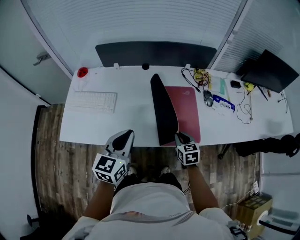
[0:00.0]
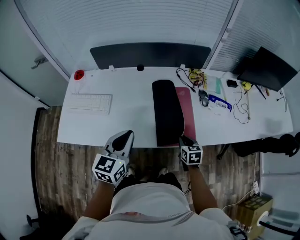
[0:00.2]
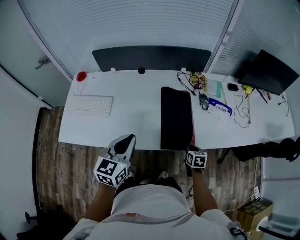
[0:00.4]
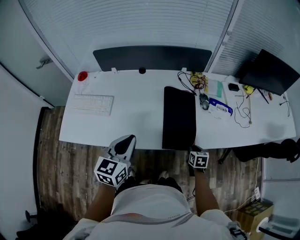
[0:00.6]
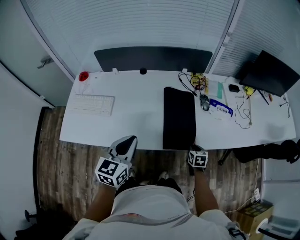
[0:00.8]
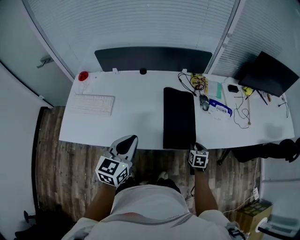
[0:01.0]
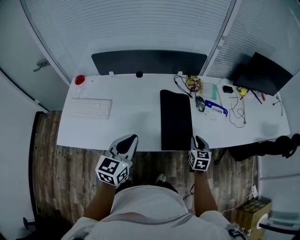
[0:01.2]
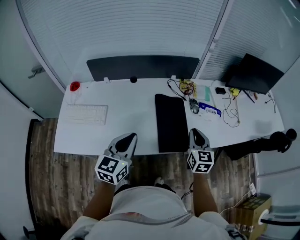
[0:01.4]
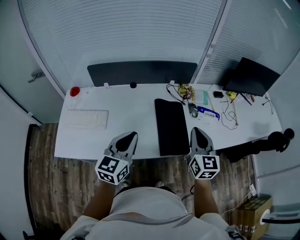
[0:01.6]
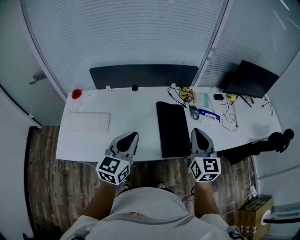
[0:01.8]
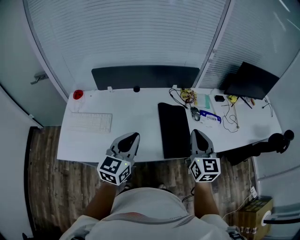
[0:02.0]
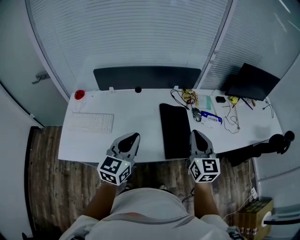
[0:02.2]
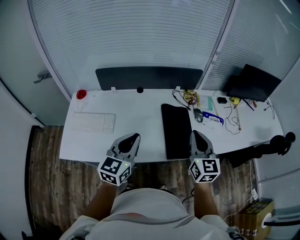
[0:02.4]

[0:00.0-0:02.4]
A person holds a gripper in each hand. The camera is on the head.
0:00.0 to 0:01.2: The right gripper moves to the right, about 15 cm; the left gripper shifts some 5 cm to the right.
0:01.2 to 0:02.4: The left gripper is displaced upward by roughly 5 cm; the right gripper goes approximately 25 cm upward and to the left, and swivels about 30 degrees.

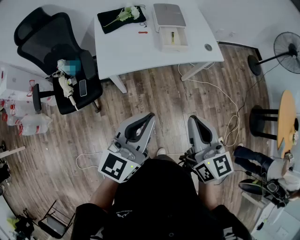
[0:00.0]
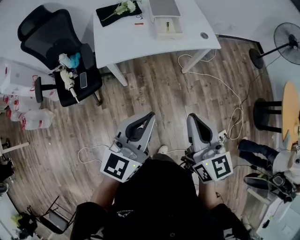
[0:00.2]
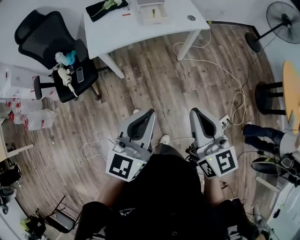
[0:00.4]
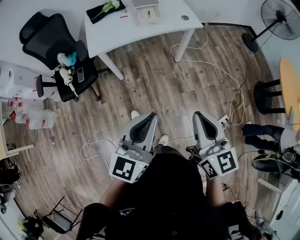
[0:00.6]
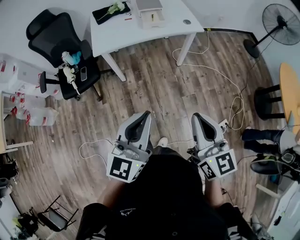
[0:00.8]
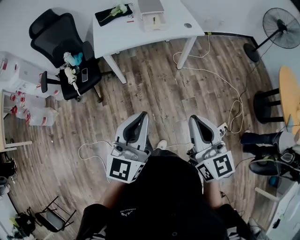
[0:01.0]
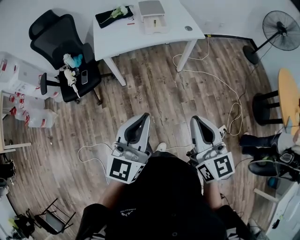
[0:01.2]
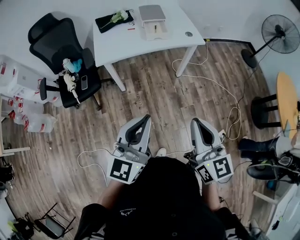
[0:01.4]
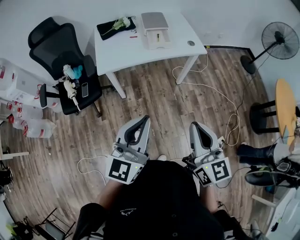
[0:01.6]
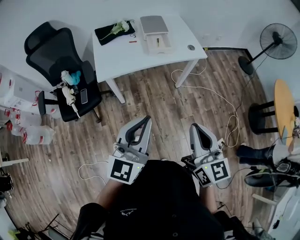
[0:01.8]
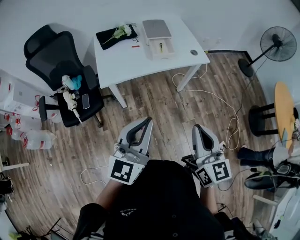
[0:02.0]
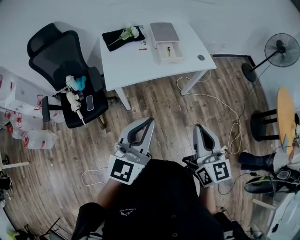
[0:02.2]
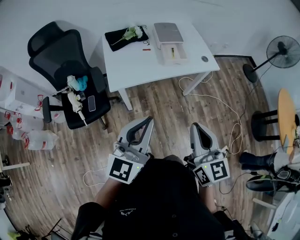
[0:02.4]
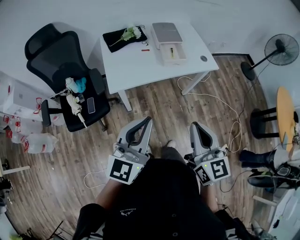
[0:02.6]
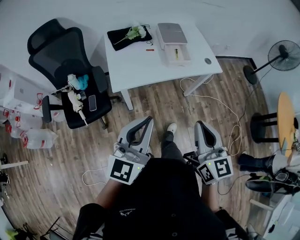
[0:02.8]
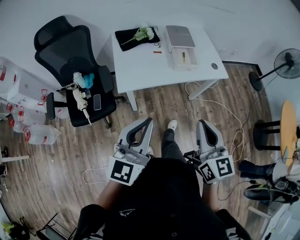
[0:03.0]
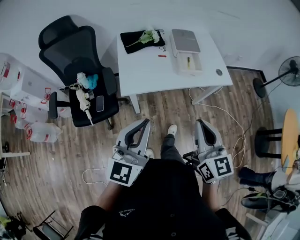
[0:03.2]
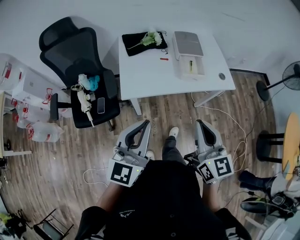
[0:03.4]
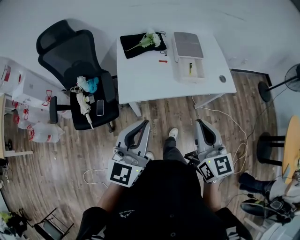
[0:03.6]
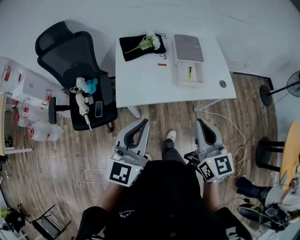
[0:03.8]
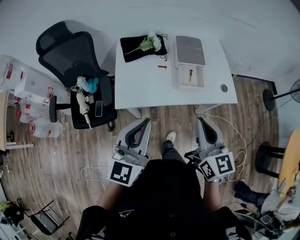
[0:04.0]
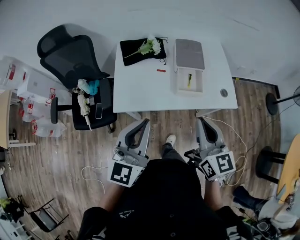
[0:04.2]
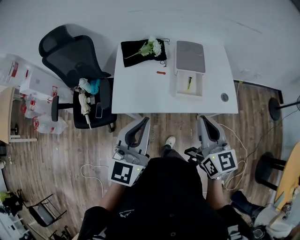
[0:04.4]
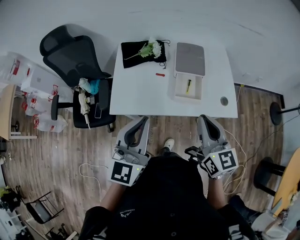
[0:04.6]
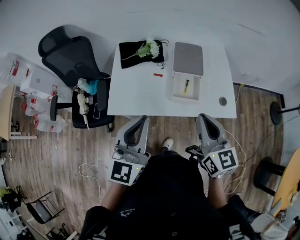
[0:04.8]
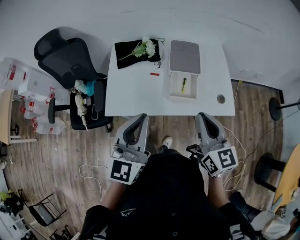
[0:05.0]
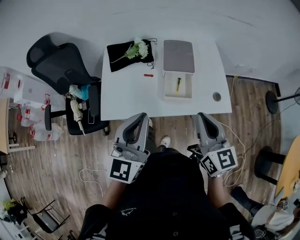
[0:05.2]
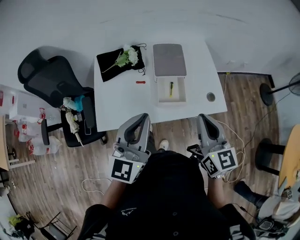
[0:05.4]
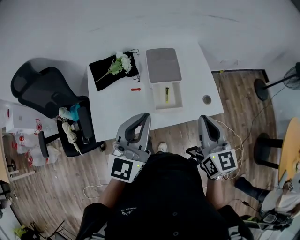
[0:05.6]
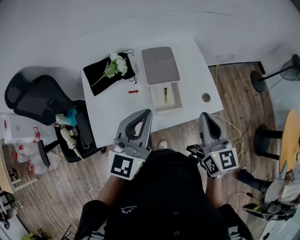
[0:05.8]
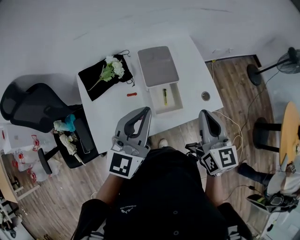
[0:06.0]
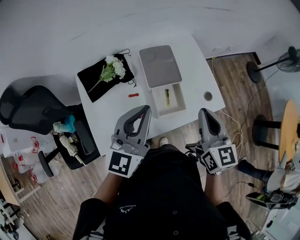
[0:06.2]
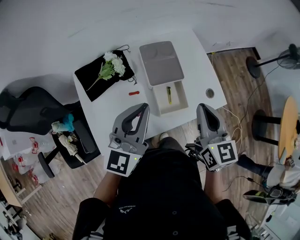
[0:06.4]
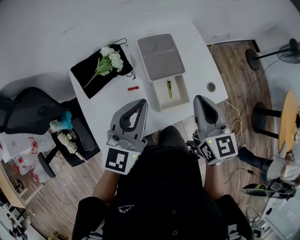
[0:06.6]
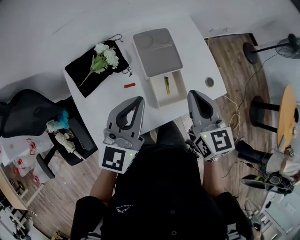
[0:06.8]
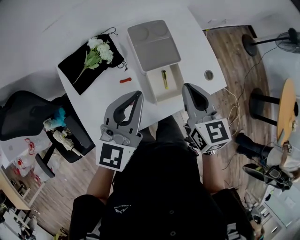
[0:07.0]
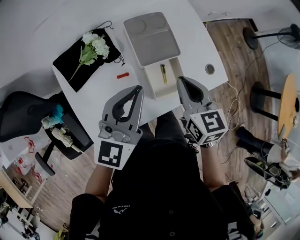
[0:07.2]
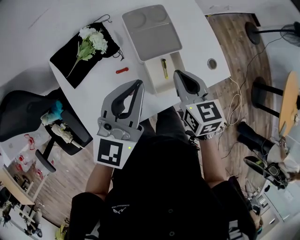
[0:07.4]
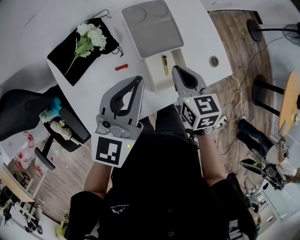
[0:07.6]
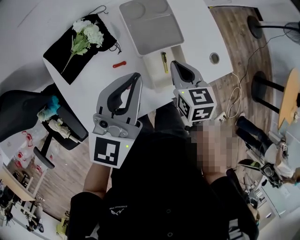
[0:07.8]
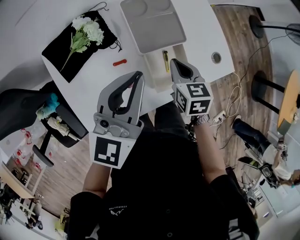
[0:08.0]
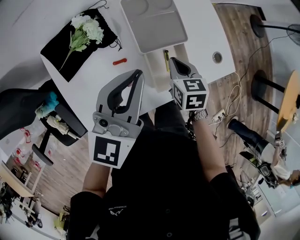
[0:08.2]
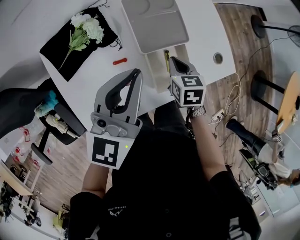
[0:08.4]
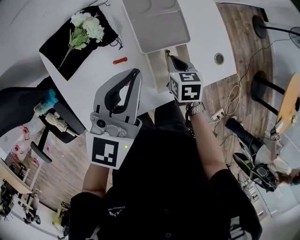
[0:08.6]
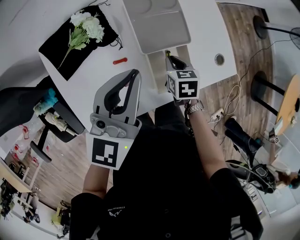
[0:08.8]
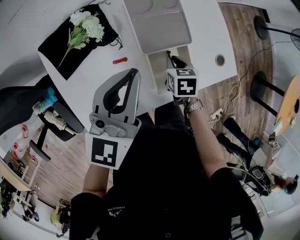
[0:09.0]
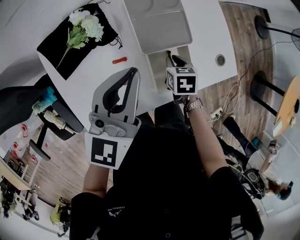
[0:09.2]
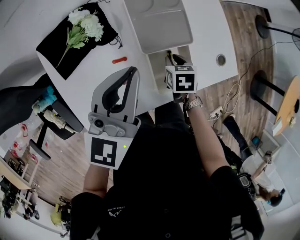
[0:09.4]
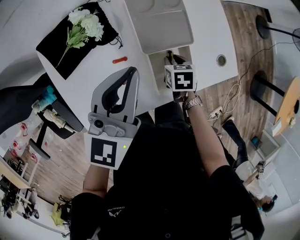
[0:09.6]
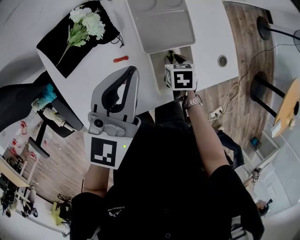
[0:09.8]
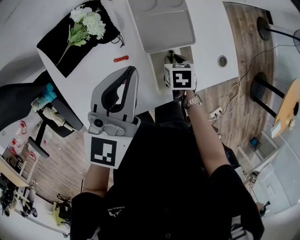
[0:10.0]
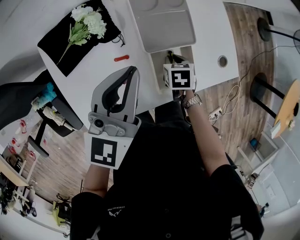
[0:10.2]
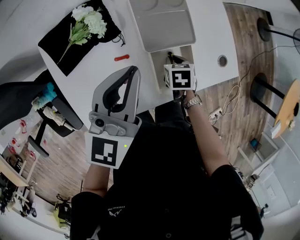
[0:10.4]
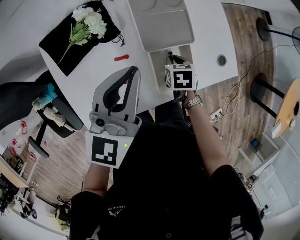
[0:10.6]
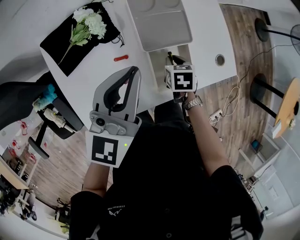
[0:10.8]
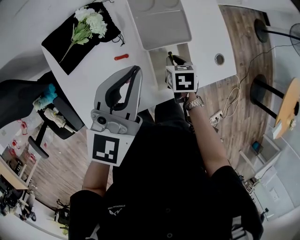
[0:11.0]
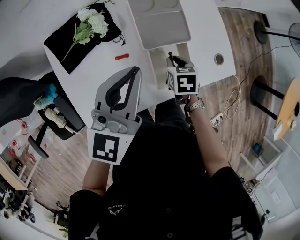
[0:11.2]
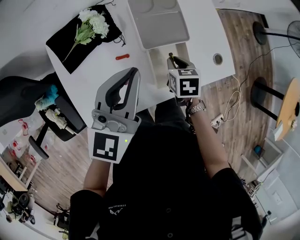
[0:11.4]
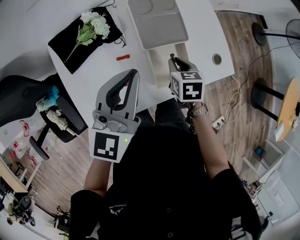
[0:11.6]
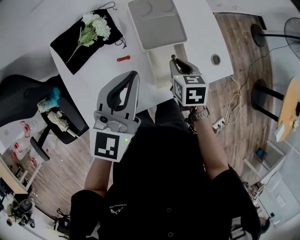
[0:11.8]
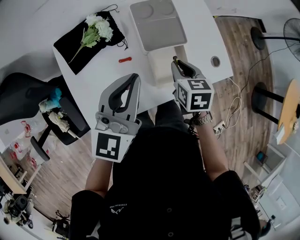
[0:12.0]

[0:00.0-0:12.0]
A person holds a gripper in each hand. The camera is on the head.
0:00.0 to 0:01.6: Both grippers move backward and to the right, some 20 cm.
0:01.6 to 0:03.0: The right gripper is displaced forward and to the left by about 25 cm; the left gripper heads to the left and forward, covering approximately 25 cm.
0:03.0 to 0:04.4: The two grippers go approximately 25 cm forward and to the right.
0:04.4 to 0:06.0: The left gripper moves some 20 cm, and changes its angle by approximately 20 degrees; the right gripper moves roughly 15 cm, and changes its angle by approximately 20 degrees.
0:06.0 to 0:07.6: The right gripper goes roughly 25 cm downward, forward and to the left, and swivels approximately 20 degrees; the left gripper heads forward and downward, covering roughly 15 cm.
0:07.6 to 0:09.0: The right gripper moves downward, roughly 15 cm, and swivels roughly 30 degrees.
0:09.0 to 0:10.4: There are only small adjustments of the grippers.
0:10.4 to 0:12.0: The left gripper moves backward, approximately 10 cm; the right gripper goes some 15 cm upward, and swivels roughly 20 degrees.

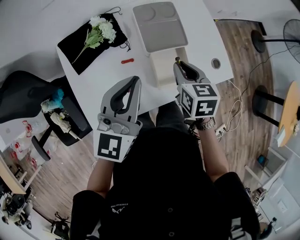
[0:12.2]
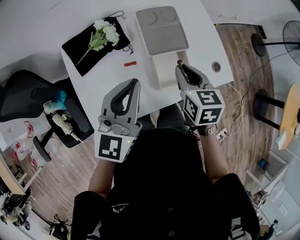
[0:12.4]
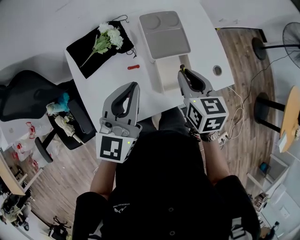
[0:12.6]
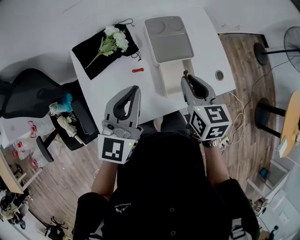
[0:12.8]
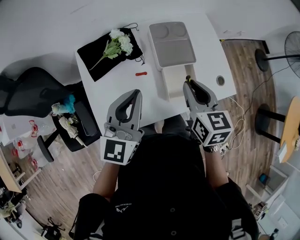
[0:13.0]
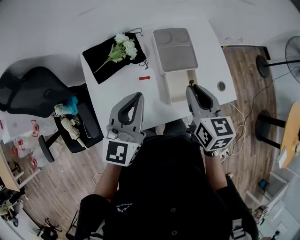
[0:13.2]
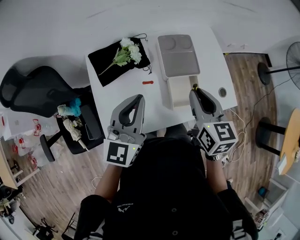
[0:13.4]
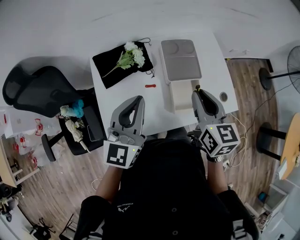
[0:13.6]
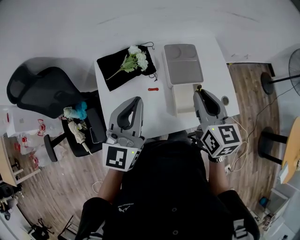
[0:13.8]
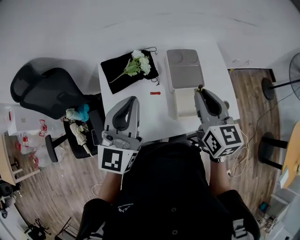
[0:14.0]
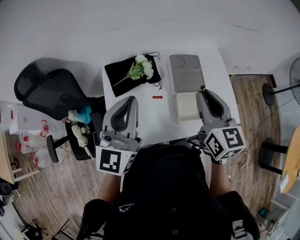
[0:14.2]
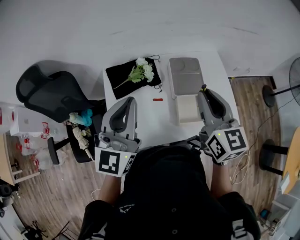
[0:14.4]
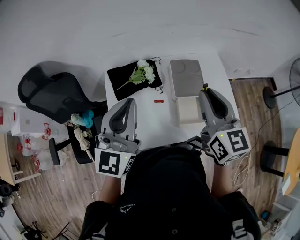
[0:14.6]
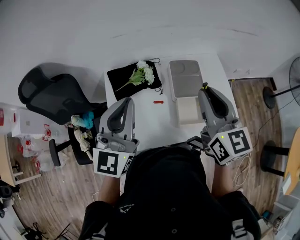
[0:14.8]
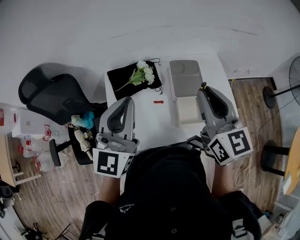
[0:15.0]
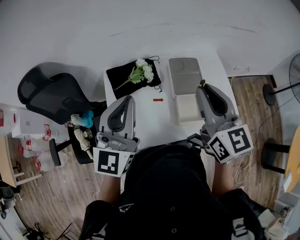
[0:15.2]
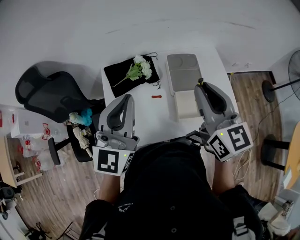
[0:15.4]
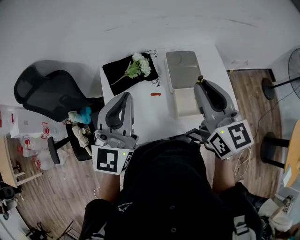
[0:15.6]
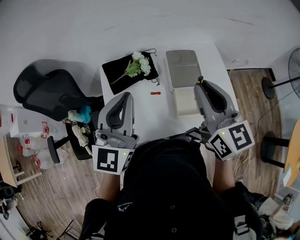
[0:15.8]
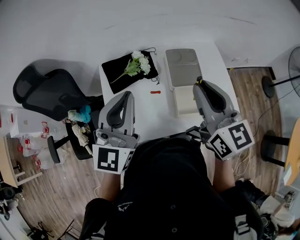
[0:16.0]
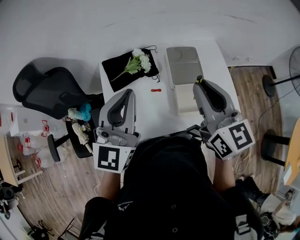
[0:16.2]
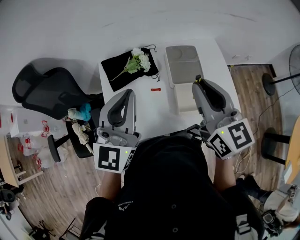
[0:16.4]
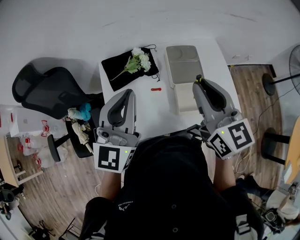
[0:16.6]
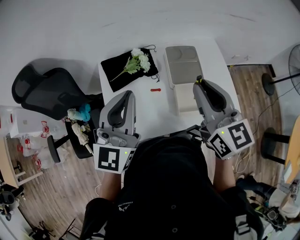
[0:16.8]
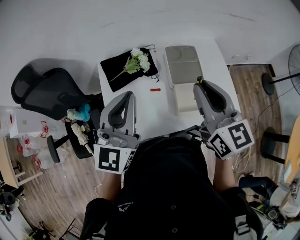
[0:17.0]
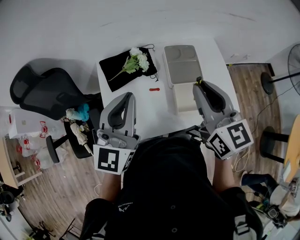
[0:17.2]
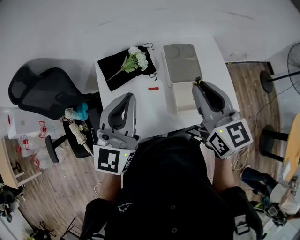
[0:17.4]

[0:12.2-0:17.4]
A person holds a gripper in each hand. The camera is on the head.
0:12.2 to 0:14.0: The right gripper travels upward by about 20 cm, and changes its angle by about 30 degrees. The left gripper shifts roughly 15 cm upward and to the left, and rotates some 20 degrees.
0:14.0 to 0:15.6: The right gripper goes approximately 10 cm upward.
0:15.6 to 0:17.4: The grippers stay close to where they were, moving slightly.

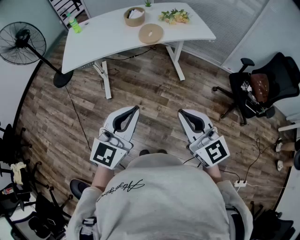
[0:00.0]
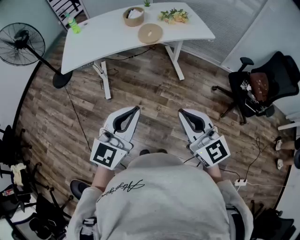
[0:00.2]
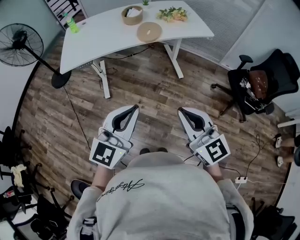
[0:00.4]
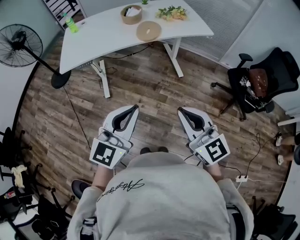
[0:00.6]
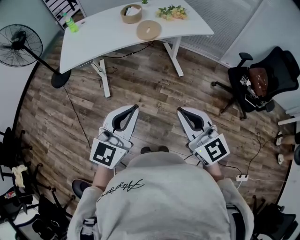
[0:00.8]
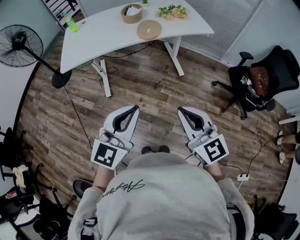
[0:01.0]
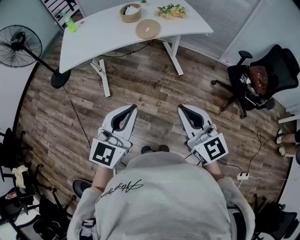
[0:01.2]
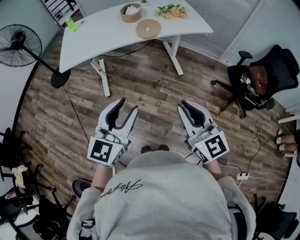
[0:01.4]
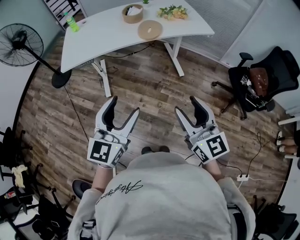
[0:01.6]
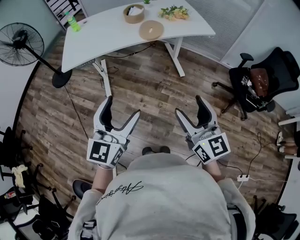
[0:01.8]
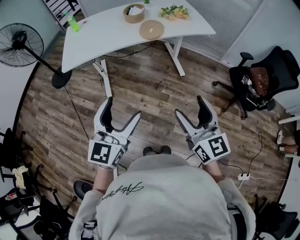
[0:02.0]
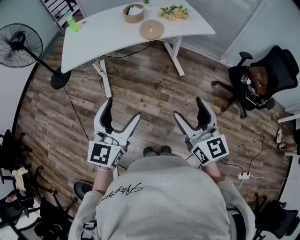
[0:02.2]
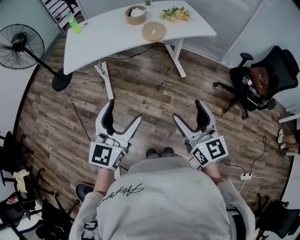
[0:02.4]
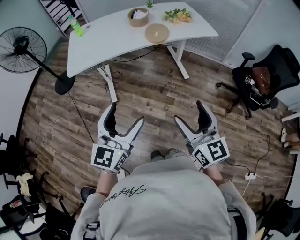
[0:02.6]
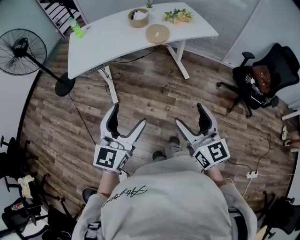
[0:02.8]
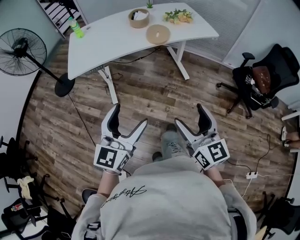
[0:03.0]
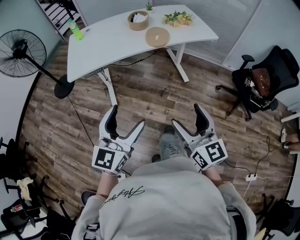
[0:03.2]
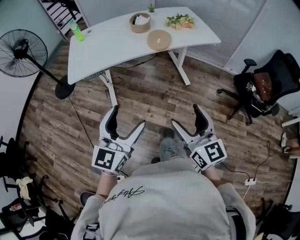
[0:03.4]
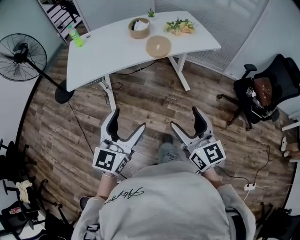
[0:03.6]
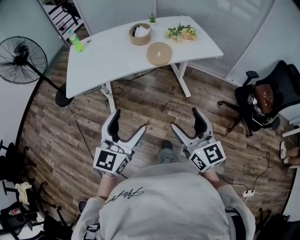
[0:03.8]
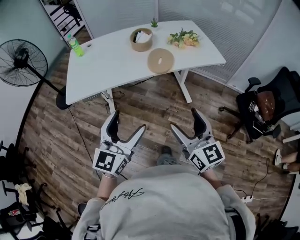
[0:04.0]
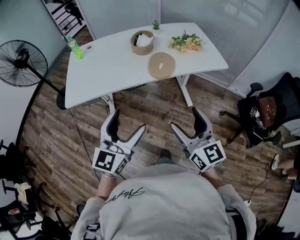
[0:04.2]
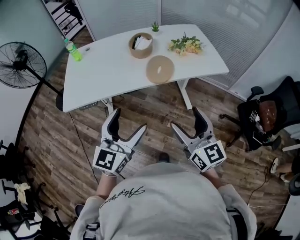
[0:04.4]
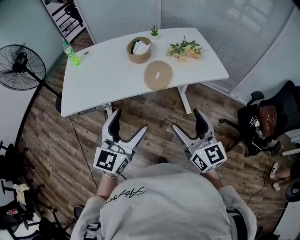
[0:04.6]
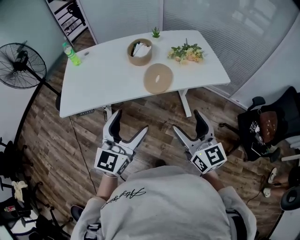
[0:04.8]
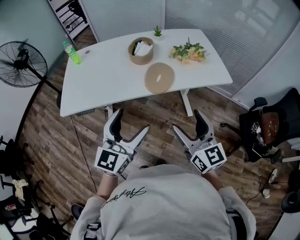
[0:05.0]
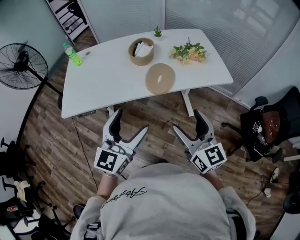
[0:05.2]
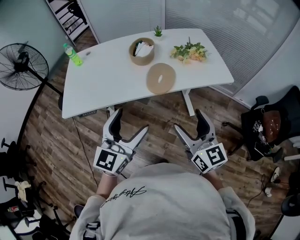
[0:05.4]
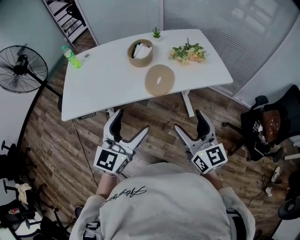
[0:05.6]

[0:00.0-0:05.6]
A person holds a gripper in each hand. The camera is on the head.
0:00.0 to 0:01.4: There are only small adjustments of the grippers.
0:01.4 to 0:02.8: Both grippers travel together to the left, approximately 5 cm. The right gripper opens. The left gripper opens up.
0:02.8 to 0:04.2: The two grippers go some 20 cm forward.
0:04.2 to 0:05.6: Both grippers move forward, about 10 cm.
